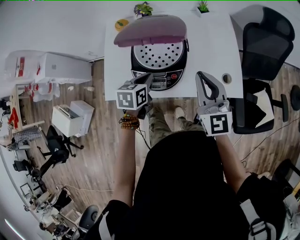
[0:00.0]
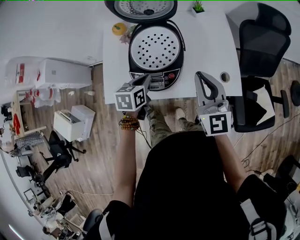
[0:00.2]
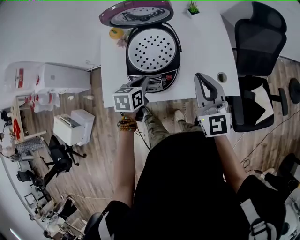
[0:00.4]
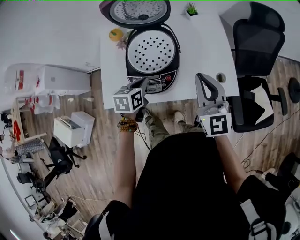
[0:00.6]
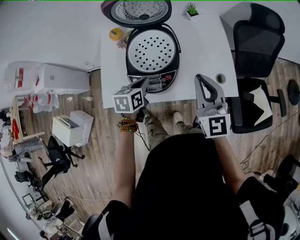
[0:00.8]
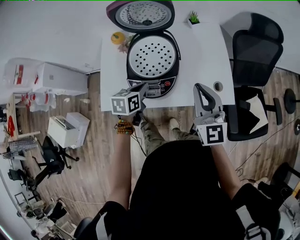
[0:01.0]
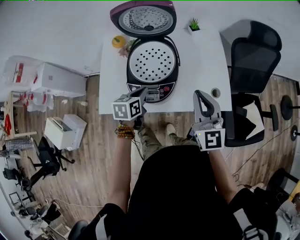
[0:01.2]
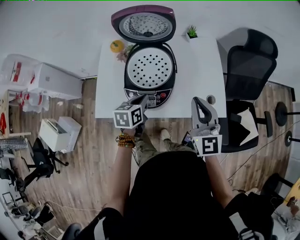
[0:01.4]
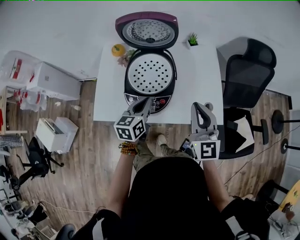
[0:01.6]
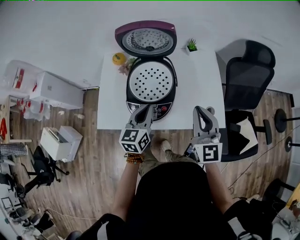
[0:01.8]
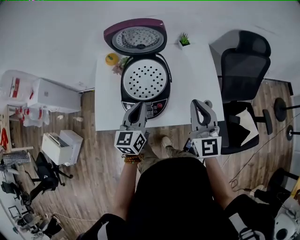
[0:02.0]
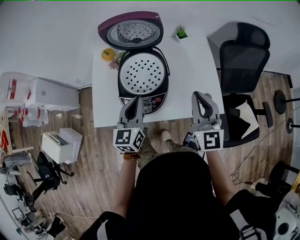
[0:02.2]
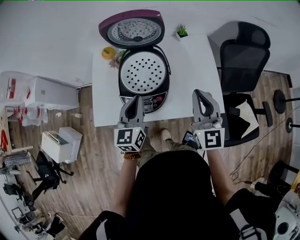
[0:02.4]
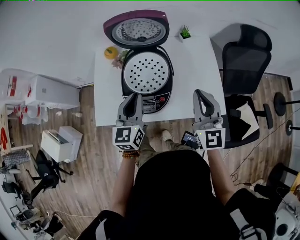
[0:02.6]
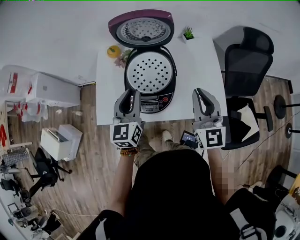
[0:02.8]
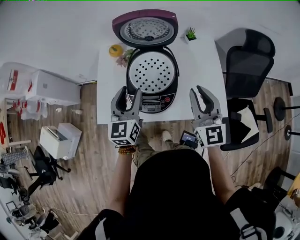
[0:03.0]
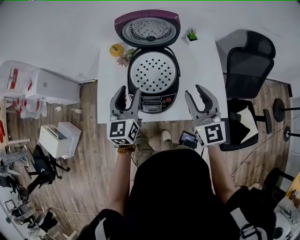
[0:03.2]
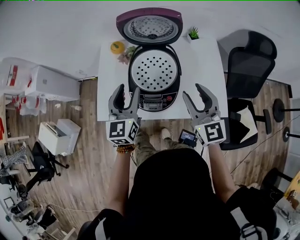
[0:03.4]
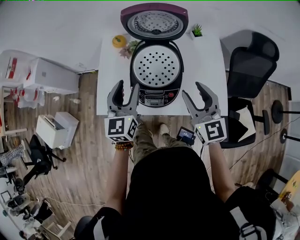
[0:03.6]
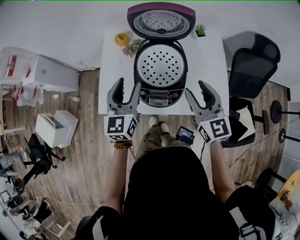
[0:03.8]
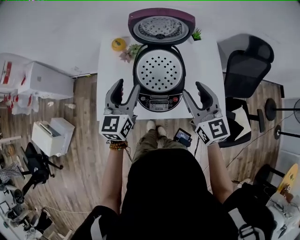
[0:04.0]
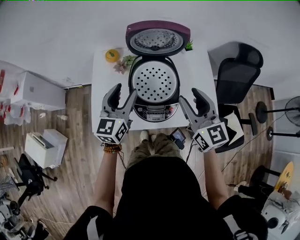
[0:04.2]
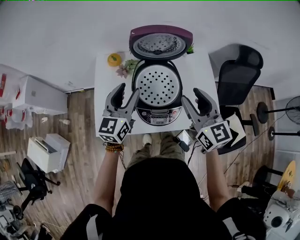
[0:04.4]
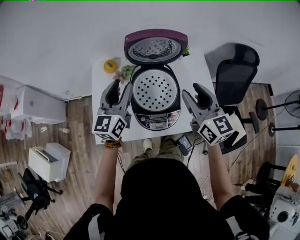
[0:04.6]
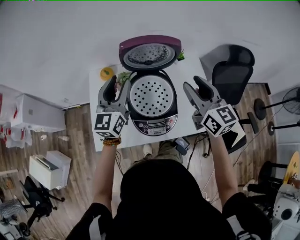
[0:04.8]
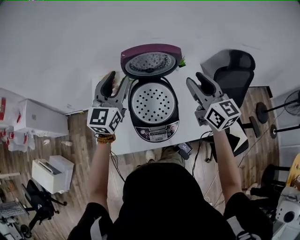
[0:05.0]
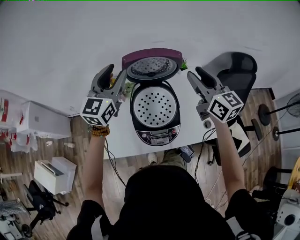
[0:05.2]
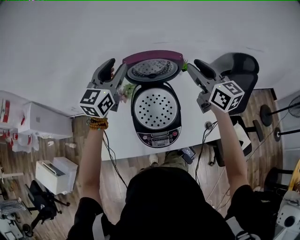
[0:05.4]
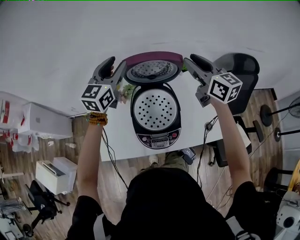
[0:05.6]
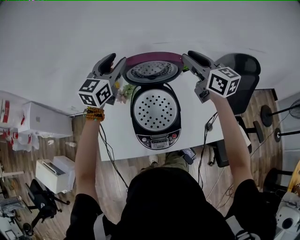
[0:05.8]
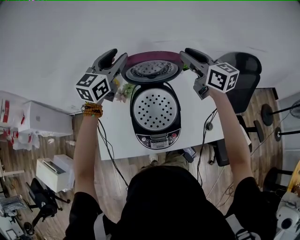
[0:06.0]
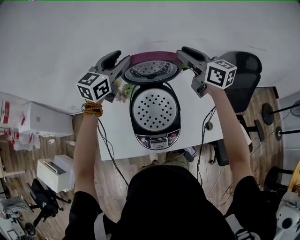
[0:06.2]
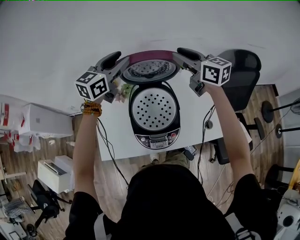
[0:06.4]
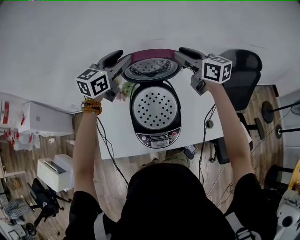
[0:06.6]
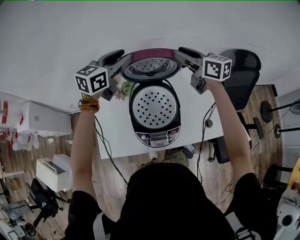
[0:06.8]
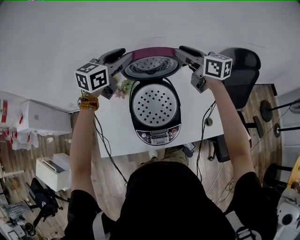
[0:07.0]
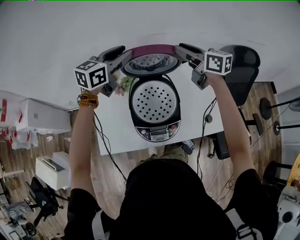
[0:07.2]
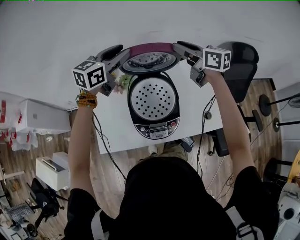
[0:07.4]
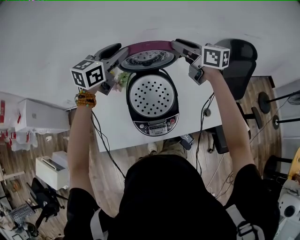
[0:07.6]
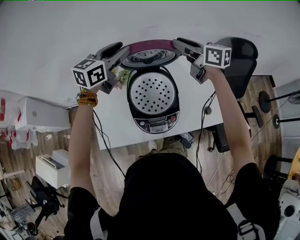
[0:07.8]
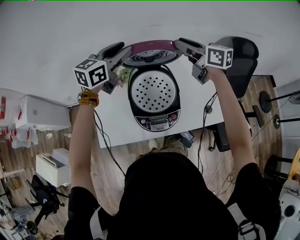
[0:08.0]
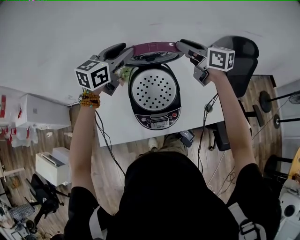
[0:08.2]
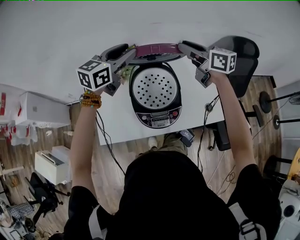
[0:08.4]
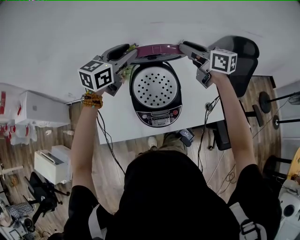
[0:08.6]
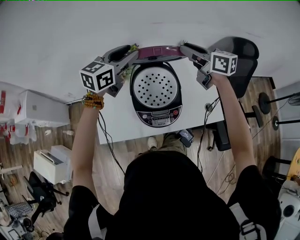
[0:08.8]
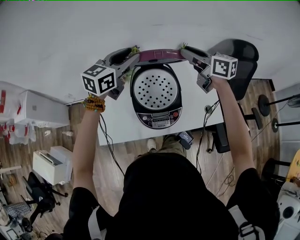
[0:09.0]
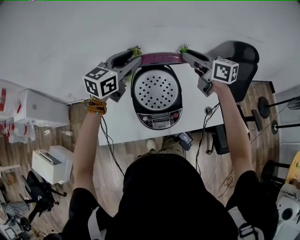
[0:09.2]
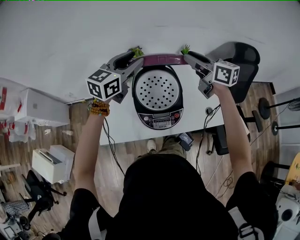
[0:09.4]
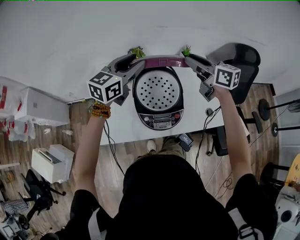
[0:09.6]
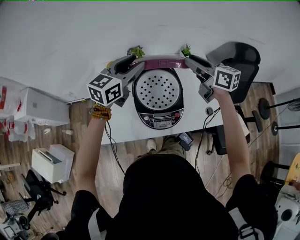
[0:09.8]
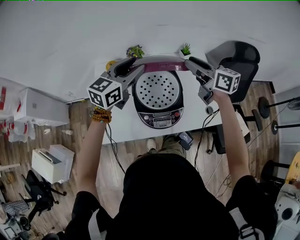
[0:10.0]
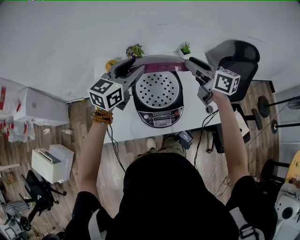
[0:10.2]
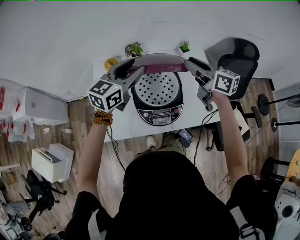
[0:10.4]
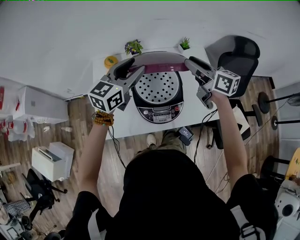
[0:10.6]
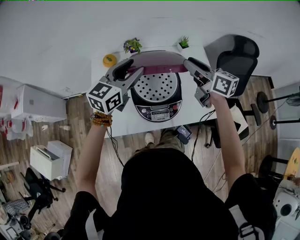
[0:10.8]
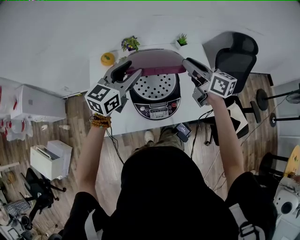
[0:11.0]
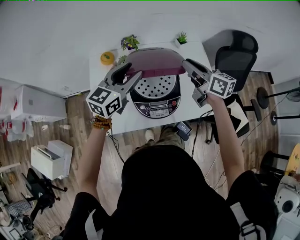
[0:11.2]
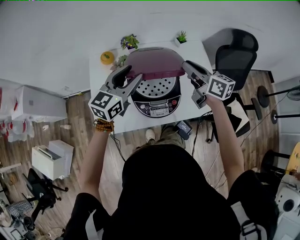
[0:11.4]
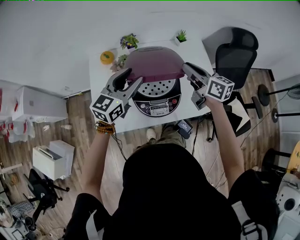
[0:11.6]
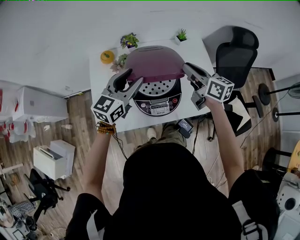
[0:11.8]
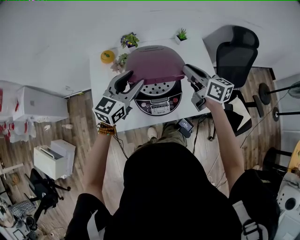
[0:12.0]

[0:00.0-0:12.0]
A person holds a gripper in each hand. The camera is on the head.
0:00.0 to 0:01.6: The left gripper shifts by roughly 5 cm, and rotates about 20 degrees.
0:01.6 to 0:03.0: The left gripper goes about 10 cm upward and to the left, rotates roughly 20 degrees, and opens up.
0:03.0 to 0:04.4: The right gripper shifts about 10 cm to the left, and opens its fingers. The left gripper travels forward and to the left by roughly 10 cm.
0:04.4 to 0:06.0: The right gripper is displaced forward by roughly 25 cm; the left gripper moves forward and upward, approximately 25 cm.
0:06.0 to 0:07.6: The grippers stay close to where they were, moving slightly.
0:07.6 to 0:09.0: The two grippers go approximately 5 cm backward.
0:09.0 to 0:10.4: Both grippers travel together backward, approximately 5 cm.
0:10.4 to 0:12.0: The right gripper is displaced downward and backward by roughly 10 cm, and closes, while the left gripper heads backward and downward, covering approximately 10 cm.

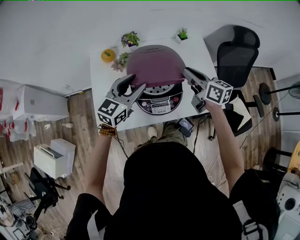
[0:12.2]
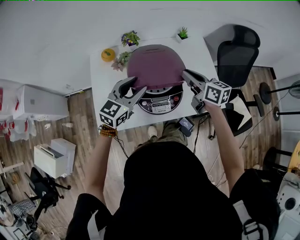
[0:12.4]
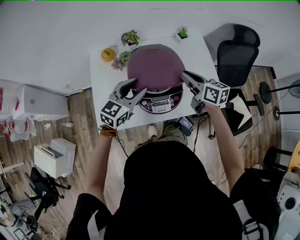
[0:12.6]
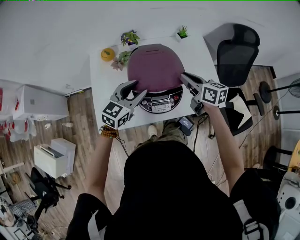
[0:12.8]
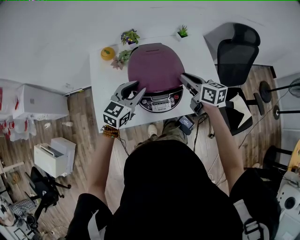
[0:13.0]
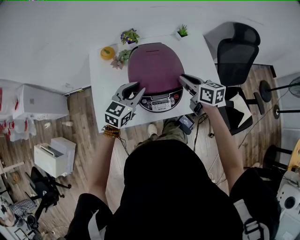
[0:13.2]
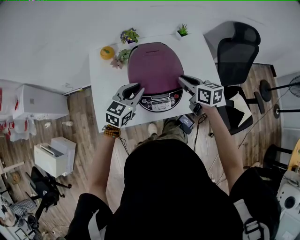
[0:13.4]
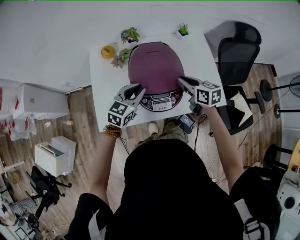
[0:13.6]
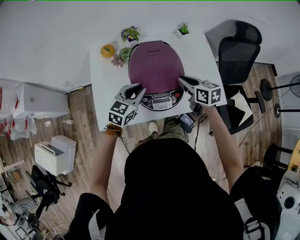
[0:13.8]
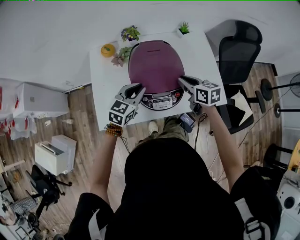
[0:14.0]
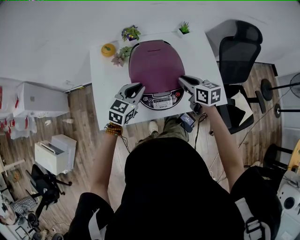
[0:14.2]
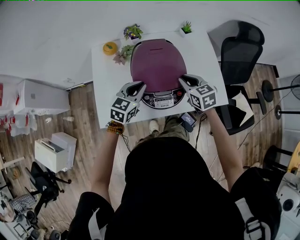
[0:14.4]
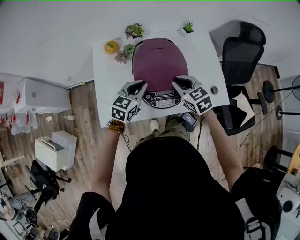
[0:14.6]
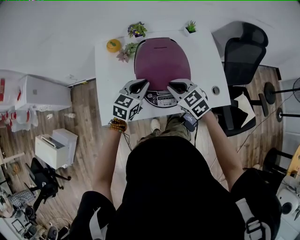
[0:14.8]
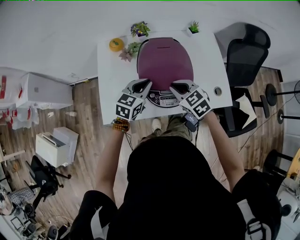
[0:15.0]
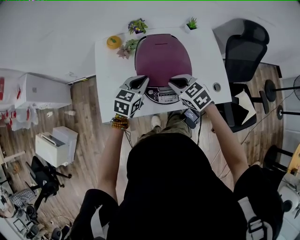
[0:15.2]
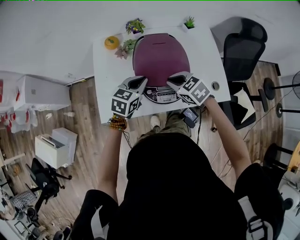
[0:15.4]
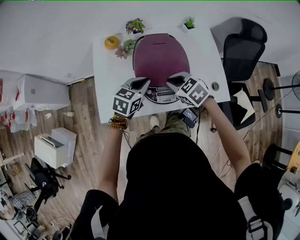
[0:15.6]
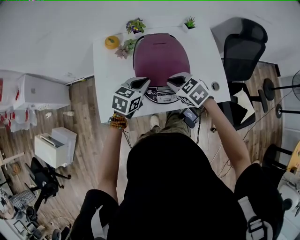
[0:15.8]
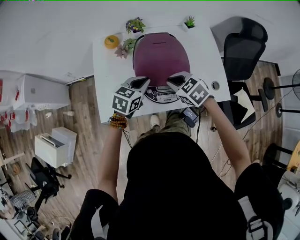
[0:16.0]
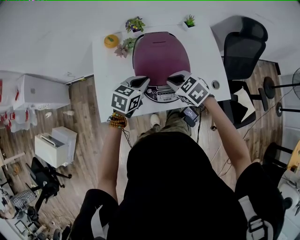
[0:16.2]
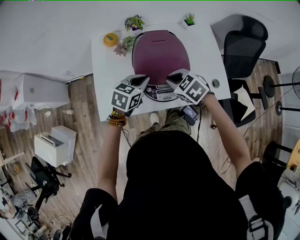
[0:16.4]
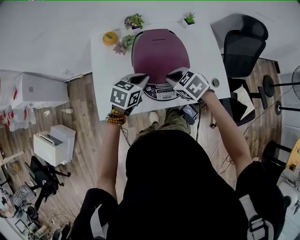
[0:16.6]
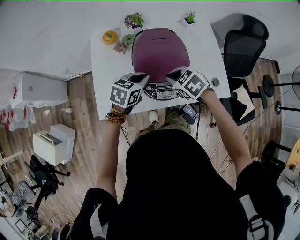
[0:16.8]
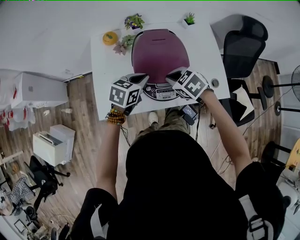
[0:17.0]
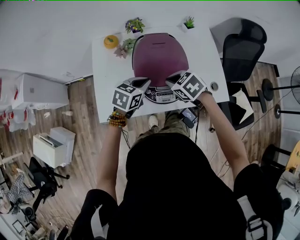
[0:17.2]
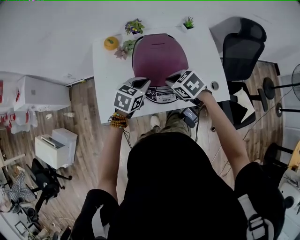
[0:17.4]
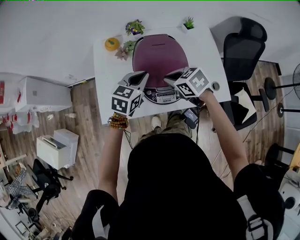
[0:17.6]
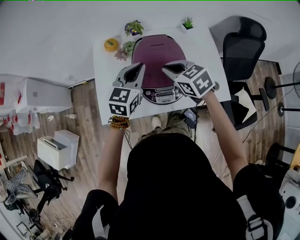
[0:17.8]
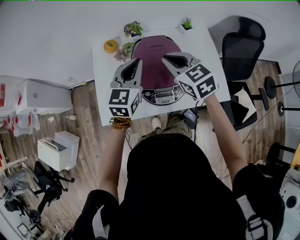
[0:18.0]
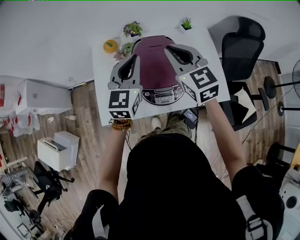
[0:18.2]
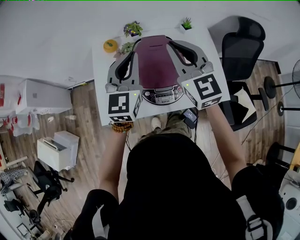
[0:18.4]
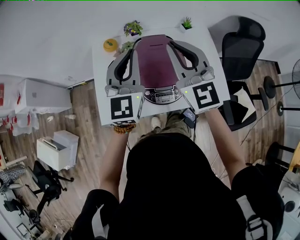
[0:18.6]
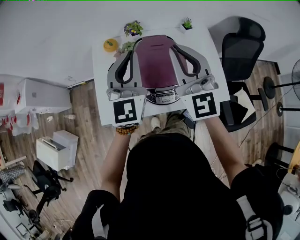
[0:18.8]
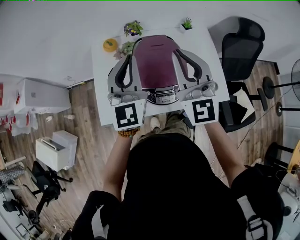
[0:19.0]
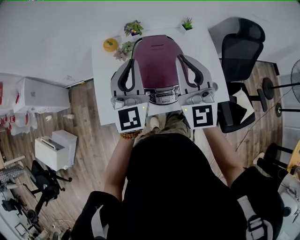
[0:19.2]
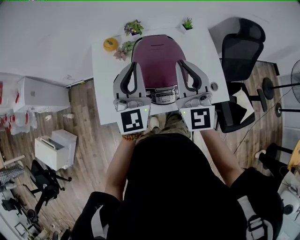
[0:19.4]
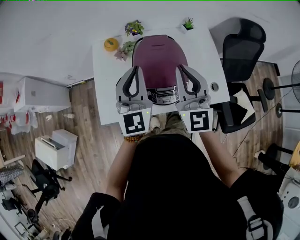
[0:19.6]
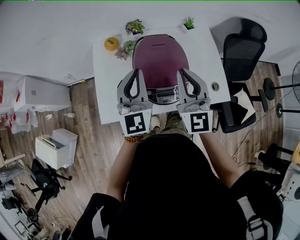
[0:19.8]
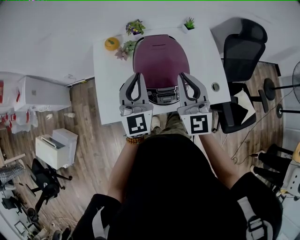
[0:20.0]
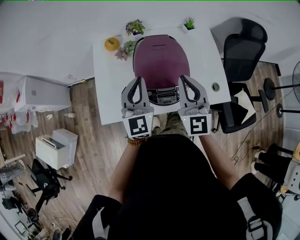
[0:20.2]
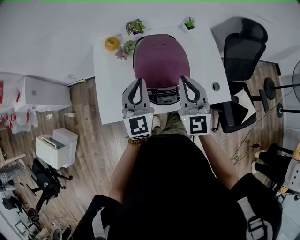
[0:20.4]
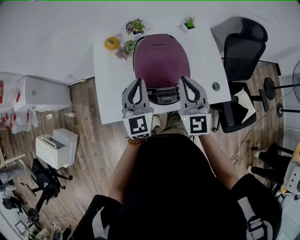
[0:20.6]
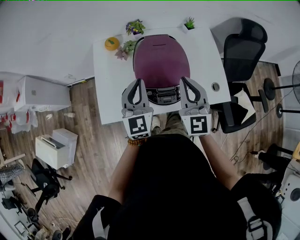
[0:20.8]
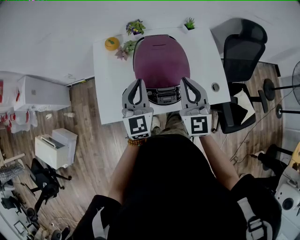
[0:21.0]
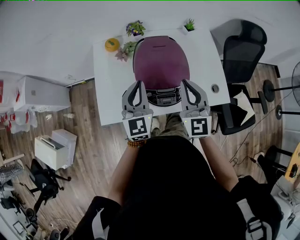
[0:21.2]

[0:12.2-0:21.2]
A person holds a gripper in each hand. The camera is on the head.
0:12.2 to 0:13.8: The two grippers go roughly 10 cm downward. The left gripper closes up.
0:13.8 to 0:15.2: The right gripper heads to the left, covering about 10 cm, and swivels roughly 40 degrees.
0:15.2 to 0:16.6: There are only small adjustments of the grippers.
0:16.6 to 0:18.2: Both grippers travel together upward, about 20 cm. The right gripper angles its fingers upward, by about 40 degrees. Meanwhile the left gripper tilts its fingers approximately 30 degrees upward.
0:18.2 to 0:19.8: The left gripper goes about 5 cm backward. Meanwhile the right gripper is displaced backward by some 10 cm, and rotates about 30 degrees.
0:19.8 to 0:21.2: The two grippers go approximately 5 cm downward.

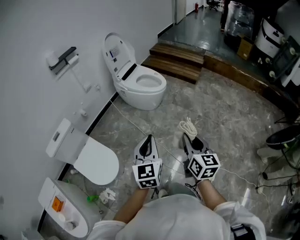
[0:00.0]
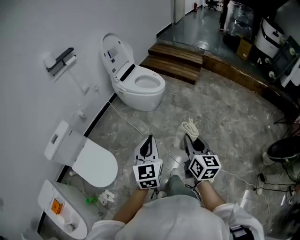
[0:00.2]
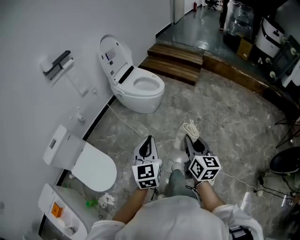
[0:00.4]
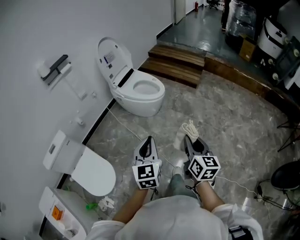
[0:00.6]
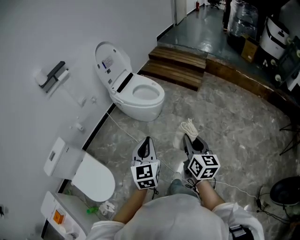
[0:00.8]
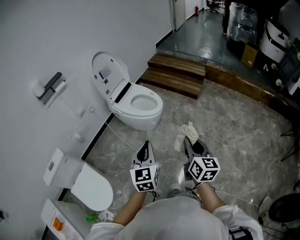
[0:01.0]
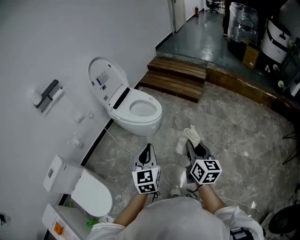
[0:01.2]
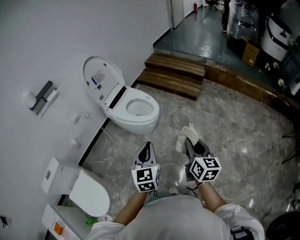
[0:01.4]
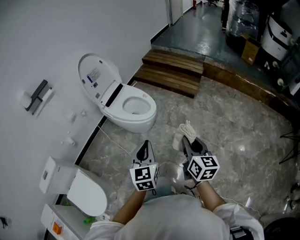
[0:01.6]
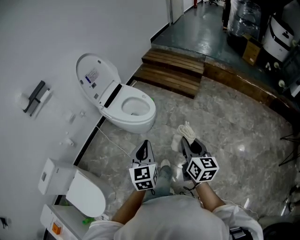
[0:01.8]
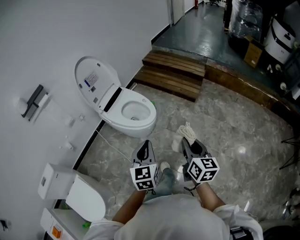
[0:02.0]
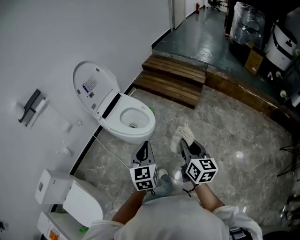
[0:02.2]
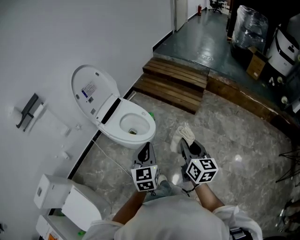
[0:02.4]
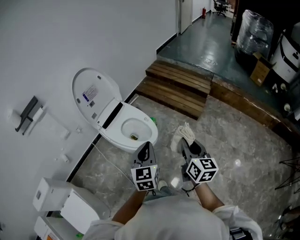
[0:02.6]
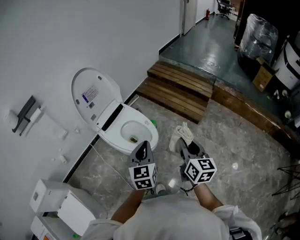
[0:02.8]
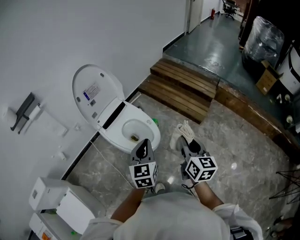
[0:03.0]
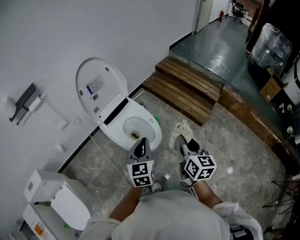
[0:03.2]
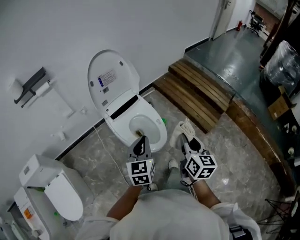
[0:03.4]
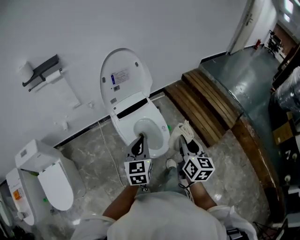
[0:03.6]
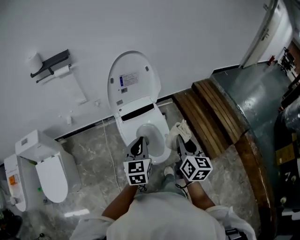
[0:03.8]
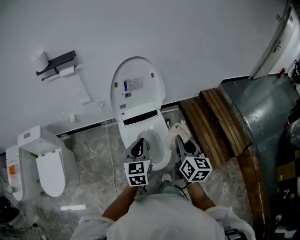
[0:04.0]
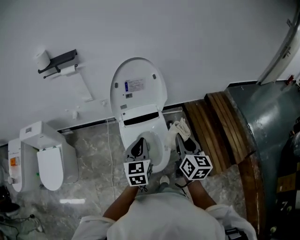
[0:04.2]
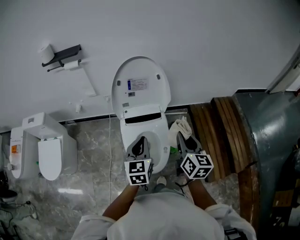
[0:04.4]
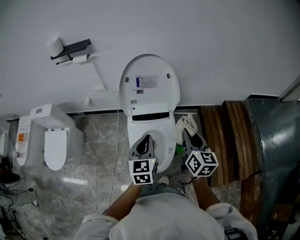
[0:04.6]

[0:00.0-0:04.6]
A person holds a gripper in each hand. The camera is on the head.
0:00.0 to 0:01.6: Both grippers move forward and to the right, about 35 cm.
0:01.6 to 0:03.0: Both grippers move forward, some 30 cm.
0:03.0 to 0:04.6: The left gripper changes place by about 25 cm, and turns by some 50 degrees. Meanwhile the right gripper shifts by about 40 cm, and swivels some 50 degrees.
